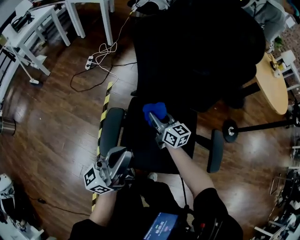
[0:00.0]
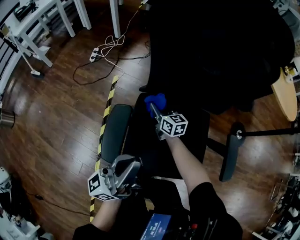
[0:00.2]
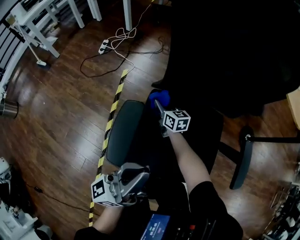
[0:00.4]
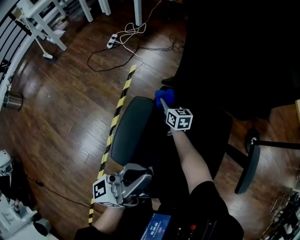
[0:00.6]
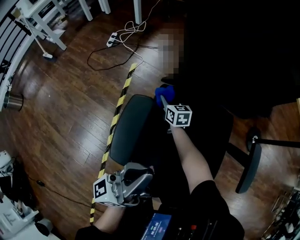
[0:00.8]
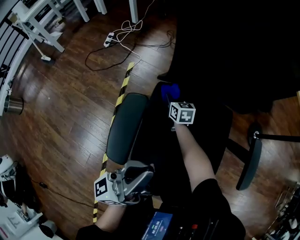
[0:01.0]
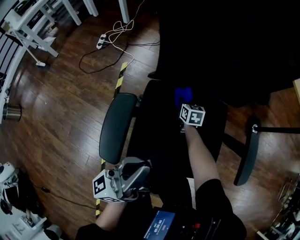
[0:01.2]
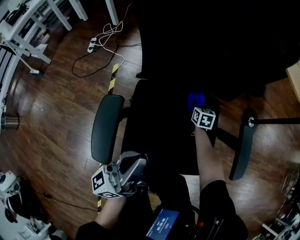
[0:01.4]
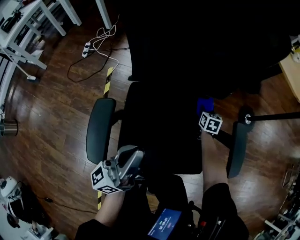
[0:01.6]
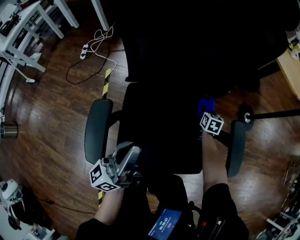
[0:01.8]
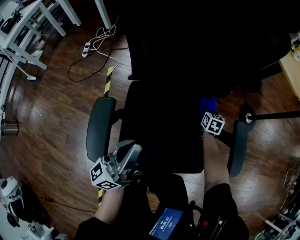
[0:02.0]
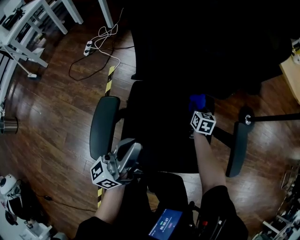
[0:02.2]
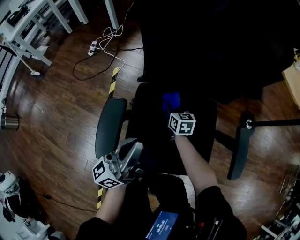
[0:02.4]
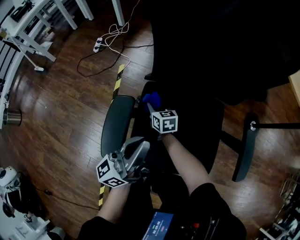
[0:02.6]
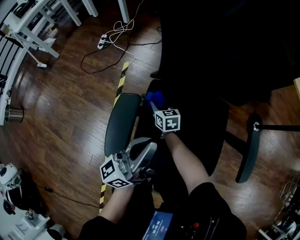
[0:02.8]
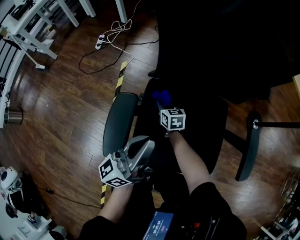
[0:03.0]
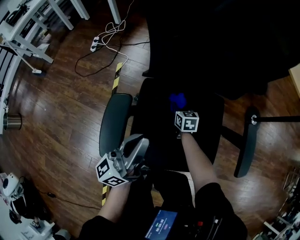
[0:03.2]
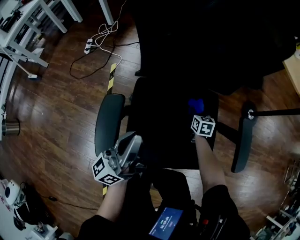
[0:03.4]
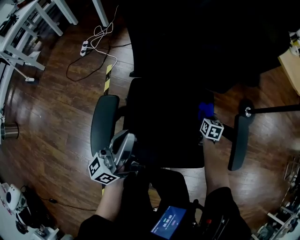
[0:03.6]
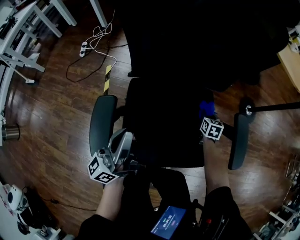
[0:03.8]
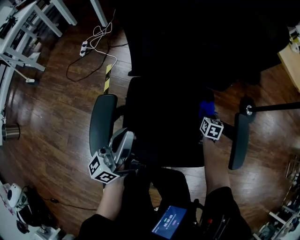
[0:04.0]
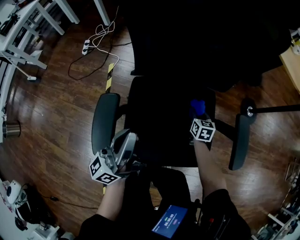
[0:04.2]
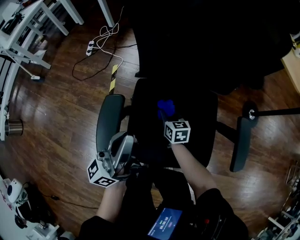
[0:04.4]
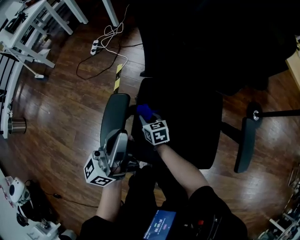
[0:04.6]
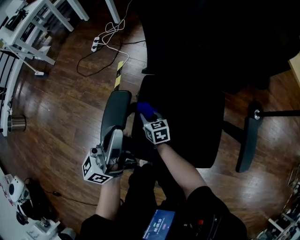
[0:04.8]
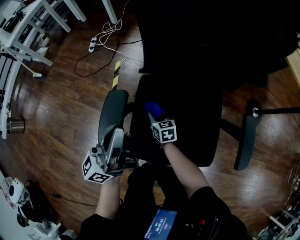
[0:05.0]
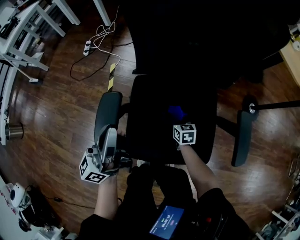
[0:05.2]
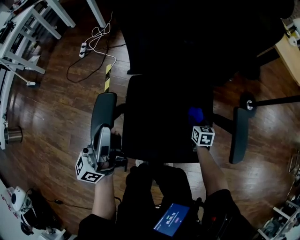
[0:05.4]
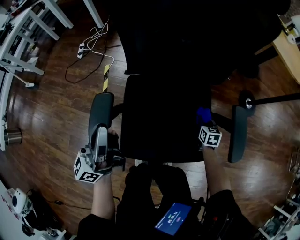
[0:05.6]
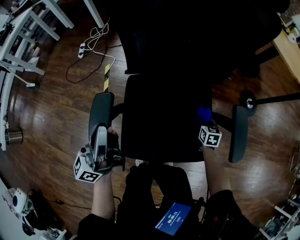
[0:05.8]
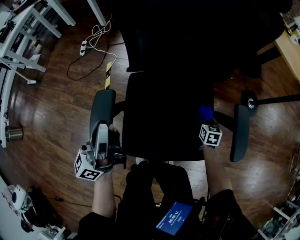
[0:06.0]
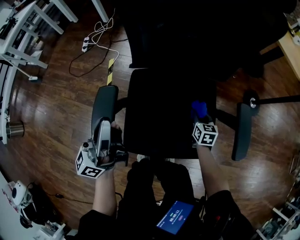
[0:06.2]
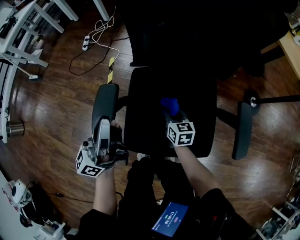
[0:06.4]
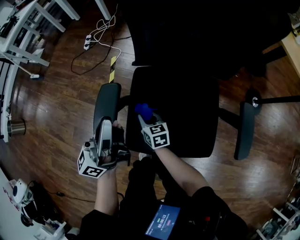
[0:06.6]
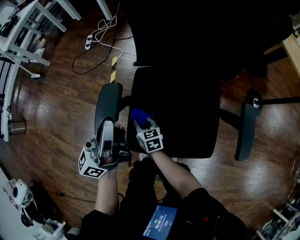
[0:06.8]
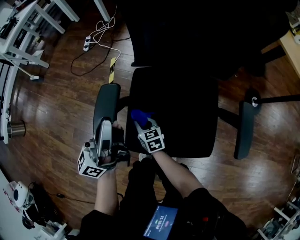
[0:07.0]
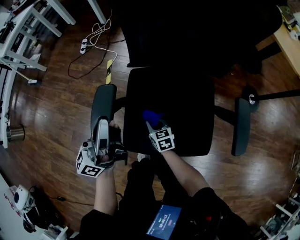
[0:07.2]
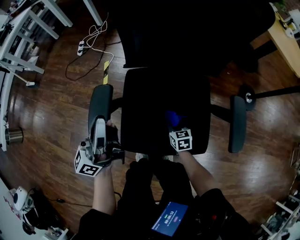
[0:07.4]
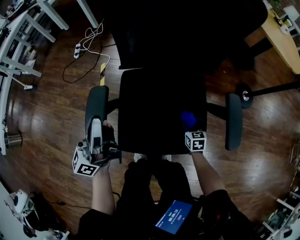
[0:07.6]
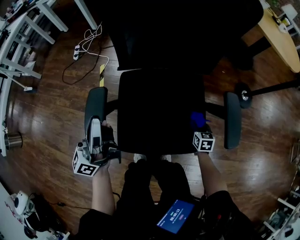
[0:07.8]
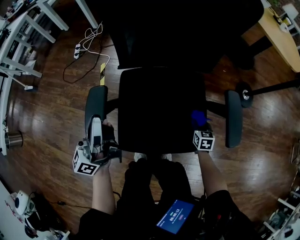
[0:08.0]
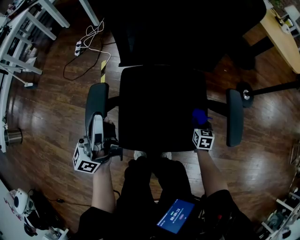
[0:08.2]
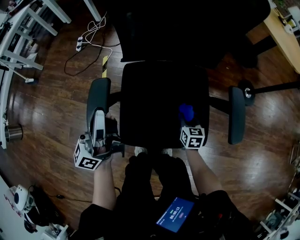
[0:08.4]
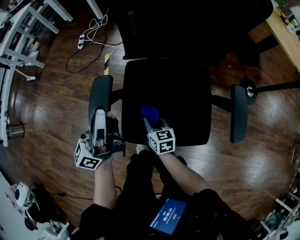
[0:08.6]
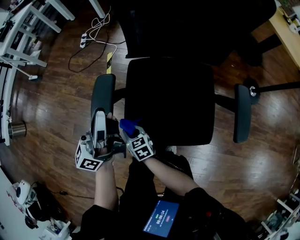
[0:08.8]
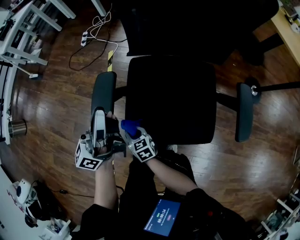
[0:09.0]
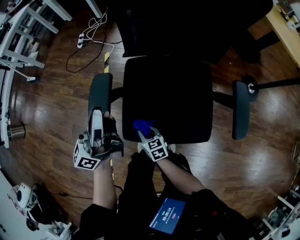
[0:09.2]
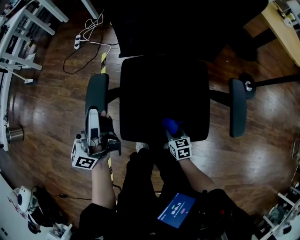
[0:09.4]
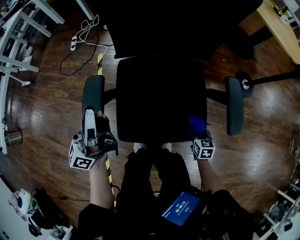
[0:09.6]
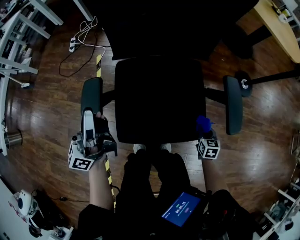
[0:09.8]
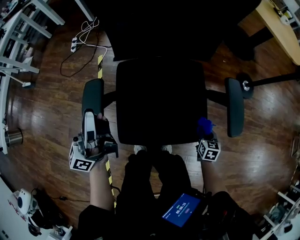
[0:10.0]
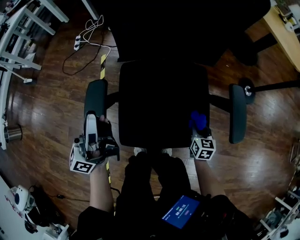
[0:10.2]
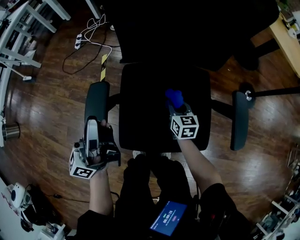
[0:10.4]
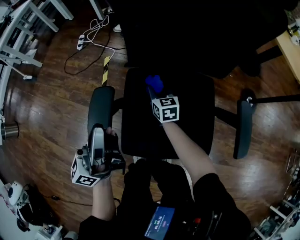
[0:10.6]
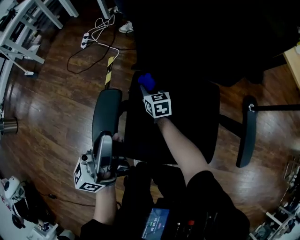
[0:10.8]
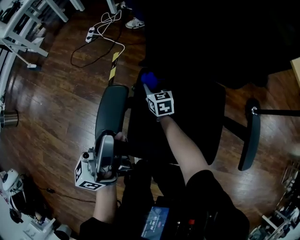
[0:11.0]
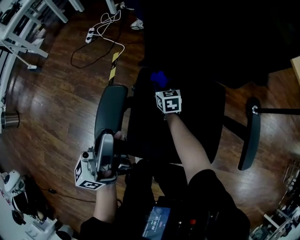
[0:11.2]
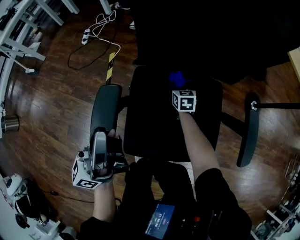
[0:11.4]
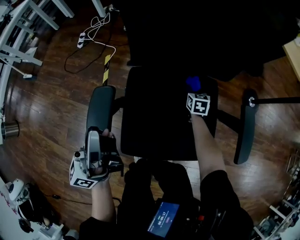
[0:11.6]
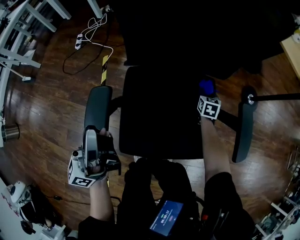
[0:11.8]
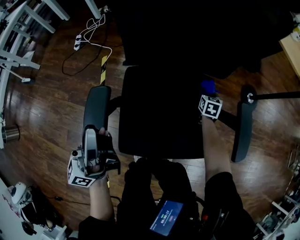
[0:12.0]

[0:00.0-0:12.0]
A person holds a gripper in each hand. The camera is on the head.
0:00.0 to 0:01.6: The left gripper moves downward, roughly 15 cm, while the right gripper heads to the right and downward, covering roughly 40 cm, and tilts its fingers about 30 degrees downward.
0:01.6 to 0:03.0: The right gripper shifts about 35 cm to the left, and rotates roughly 30 degrees.
0:03.0 to 0:04.4: The right gripper reaches roughly 35 cm to the right, then returns.
0:04.4 to 0:06.0: The right gripper shifts some 25 cm to the right, and turns by approximately 20 degrees.
0:06.0 to 0:07.6: The right gripper heads backward, covering some 5 cm, and reaches some 40 cm to the left, then returns.
0:07.6 to 0:09.0: The right gripper changes place by some 35 cm, and changes its angle by some 30 degrees.
0:09.0 to 0:10.4: The right gripper ends up about 30 cm from where it was, and swivels roughly 30 degrees.
0:10.4 to 0:12.0: The right gripper is displaced to the right and forward by roughly 20 cm, and rotates roughly 30 degrees.

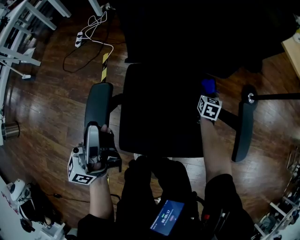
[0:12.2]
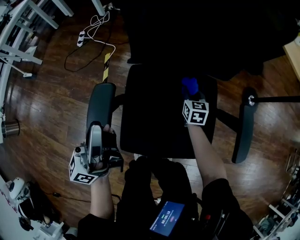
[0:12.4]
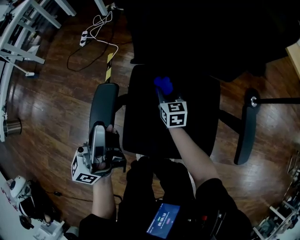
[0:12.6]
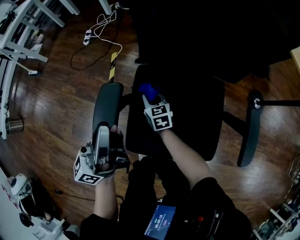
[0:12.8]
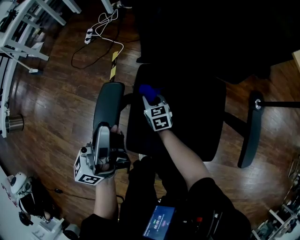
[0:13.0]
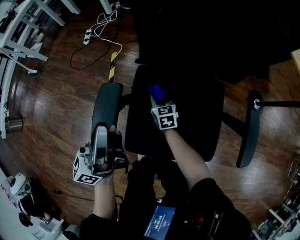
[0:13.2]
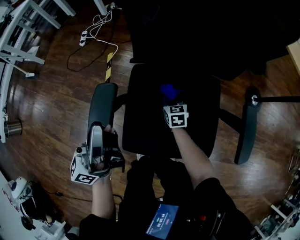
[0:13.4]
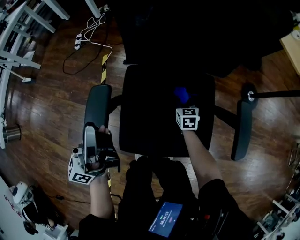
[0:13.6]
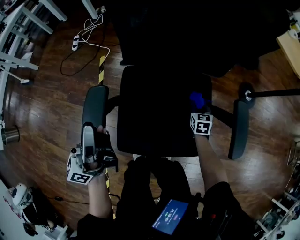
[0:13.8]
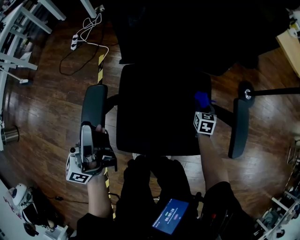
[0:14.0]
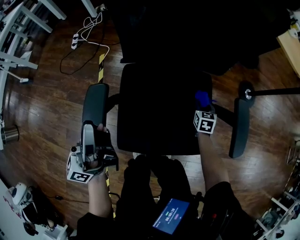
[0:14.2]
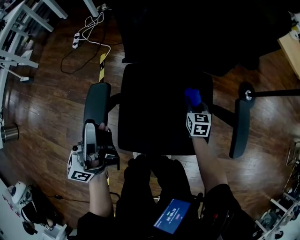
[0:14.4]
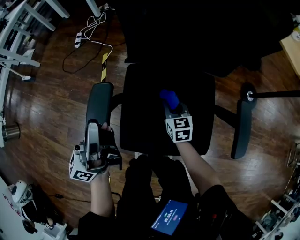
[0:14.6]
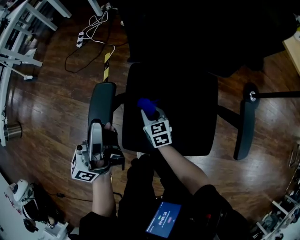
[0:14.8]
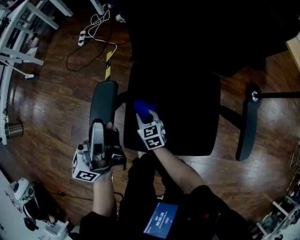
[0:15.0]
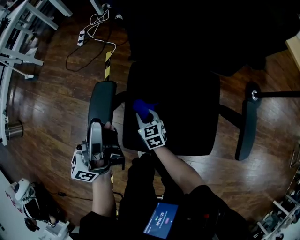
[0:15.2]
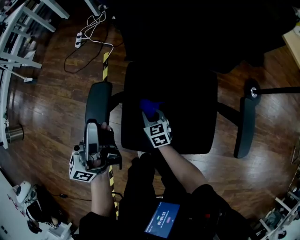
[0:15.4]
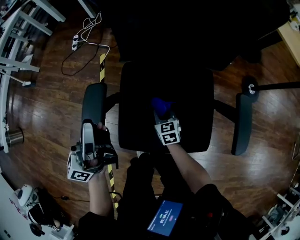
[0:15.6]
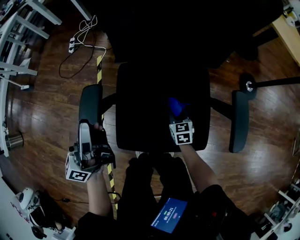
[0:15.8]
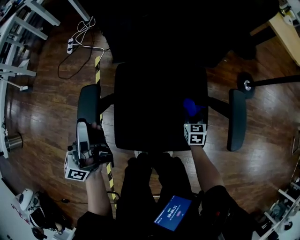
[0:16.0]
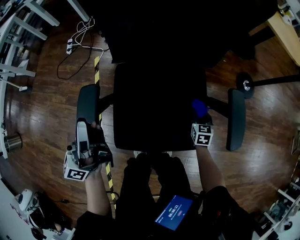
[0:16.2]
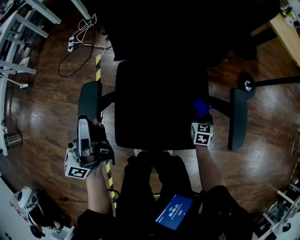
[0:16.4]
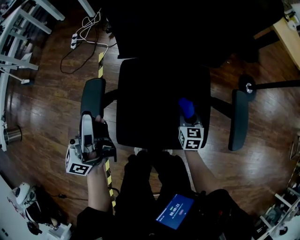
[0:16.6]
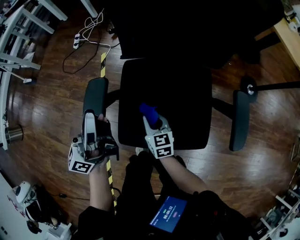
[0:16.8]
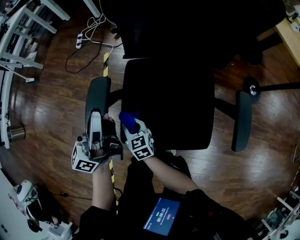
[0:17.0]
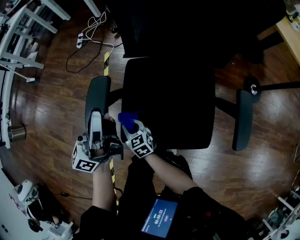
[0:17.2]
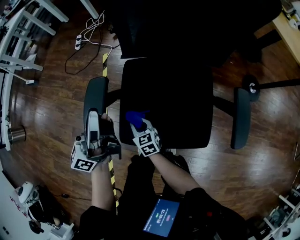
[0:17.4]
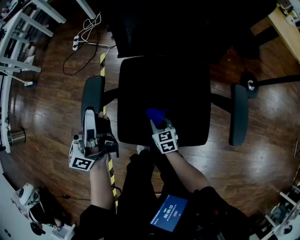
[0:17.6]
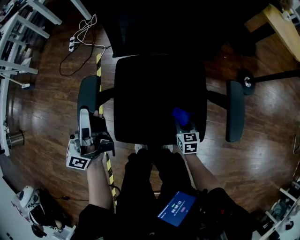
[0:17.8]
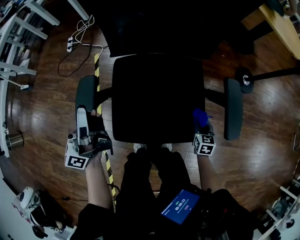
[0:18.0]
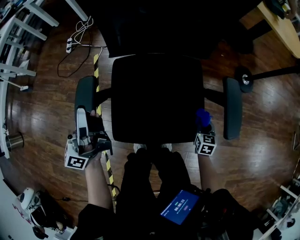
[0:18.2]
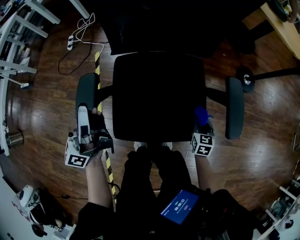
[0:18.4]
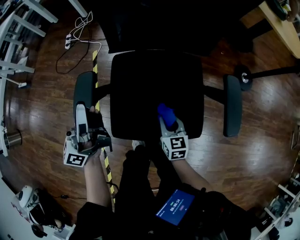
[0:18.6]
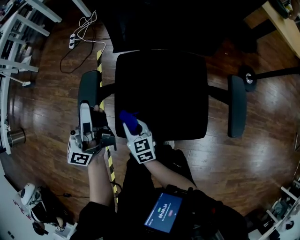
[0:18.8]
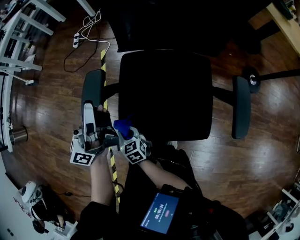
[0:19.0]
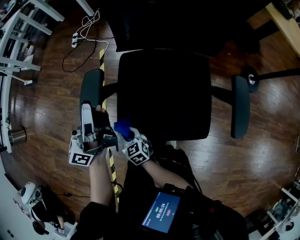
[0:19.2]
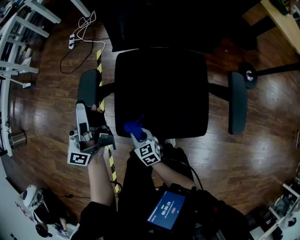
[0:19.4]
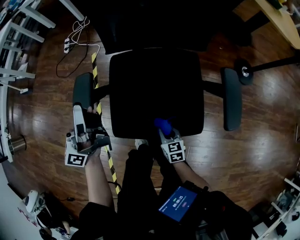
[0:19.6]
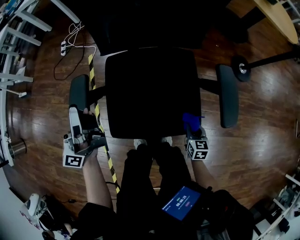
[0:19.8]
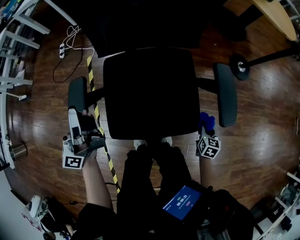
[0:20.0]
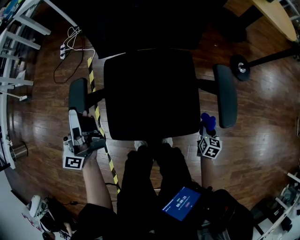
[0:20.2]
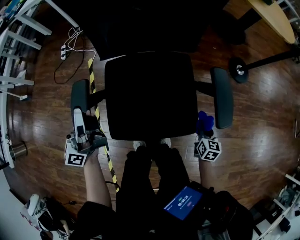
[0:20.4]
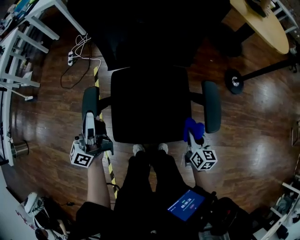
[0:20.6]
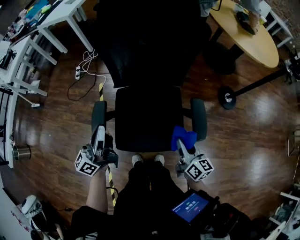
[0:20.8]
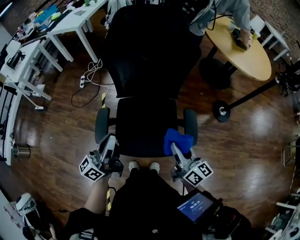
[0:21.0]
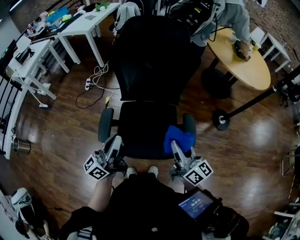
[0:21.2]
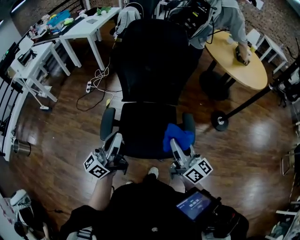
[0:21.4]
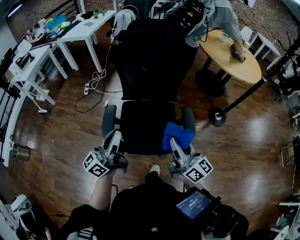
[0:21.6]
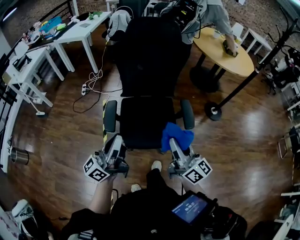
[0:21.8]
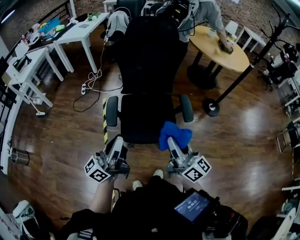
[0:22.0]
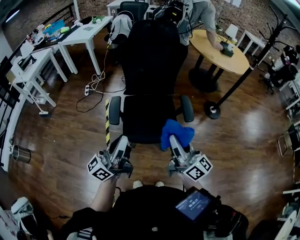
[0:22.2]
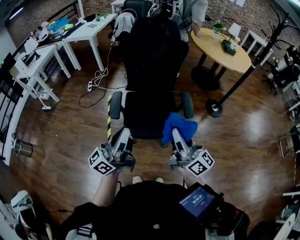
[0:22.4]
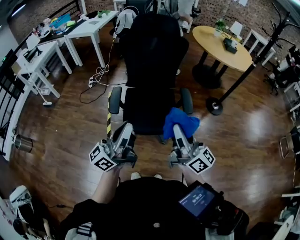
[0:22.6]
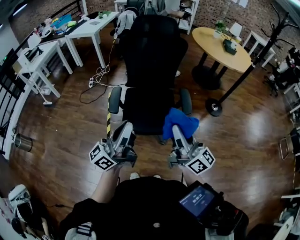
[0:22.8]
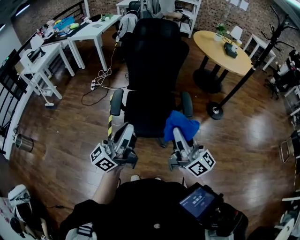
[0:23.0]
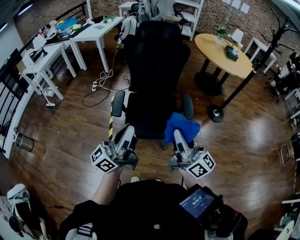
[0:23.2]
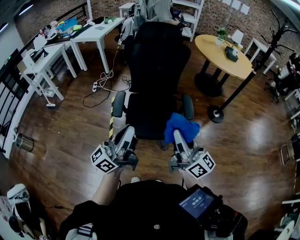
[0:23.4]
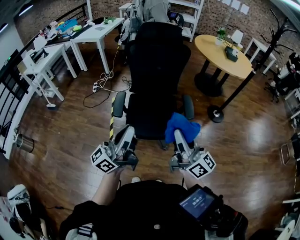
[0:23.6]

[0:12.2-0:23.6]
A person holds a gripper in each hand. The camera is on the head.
0:12.2 to 0:13.6: The right gripper is displaced to the left and backward by some 15 cm.
0:13.6 to 0:15.0: The right gripper heads to the left and backward, covering approximately 25 cm, and rotates some 20 degrees.
0:15.0 to 0:16.4: The right gripper heads to the right, covering approximately 35 cm, and rotates roughly 30 degrees.
0:16.4 to 0:17.8: The right gripper goes upward and returns, some 5 cm each way.
0:17.8 to 0:19.4: The right gripper reaches roughly 10 cm upward, then returns, and turns by roughly 20 degrees.
0:19.4 to 0:20.8: The right gripper is displaced upward by roughly 30 cm, and swivels some 40 degrees. Meanwhile the left gripper moves upward, approximately 10 cm.
0:20.8 to 0:22.2: The left gripper goes approximately 30 cm backward and upward; the right gripper moves upward and backward, some 35 cm, and tips its fingers upward by approximately 30 degrees.
0:22.2 to 0:23.6: The left gripper moves about 5 cm; the right gripper changes place by some 5 cm.
